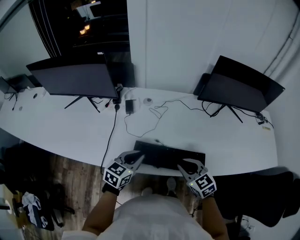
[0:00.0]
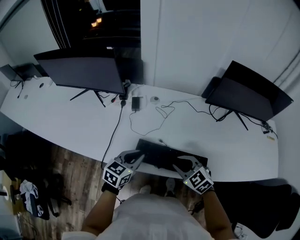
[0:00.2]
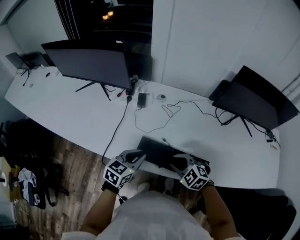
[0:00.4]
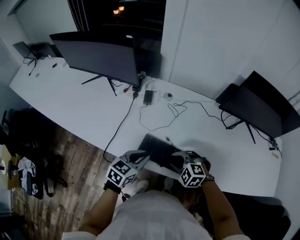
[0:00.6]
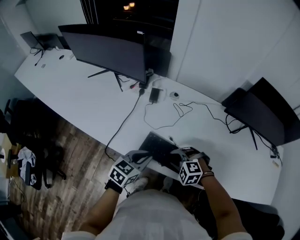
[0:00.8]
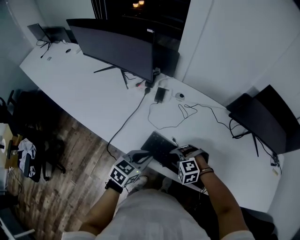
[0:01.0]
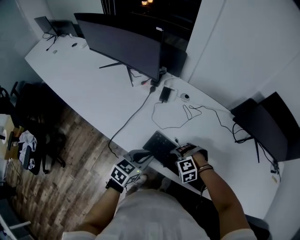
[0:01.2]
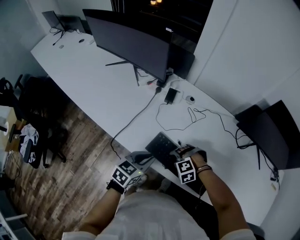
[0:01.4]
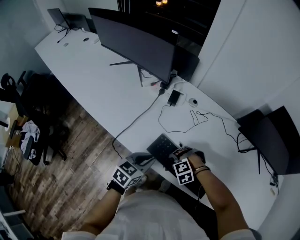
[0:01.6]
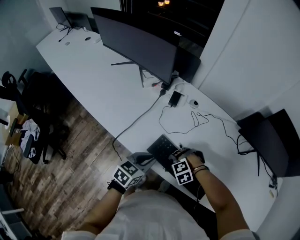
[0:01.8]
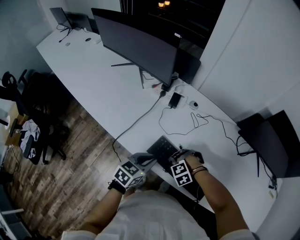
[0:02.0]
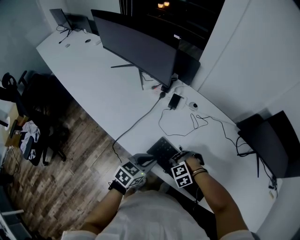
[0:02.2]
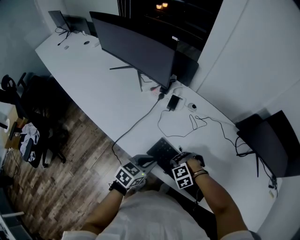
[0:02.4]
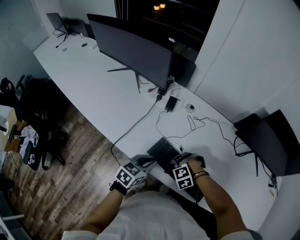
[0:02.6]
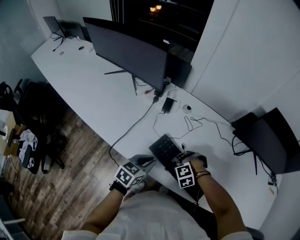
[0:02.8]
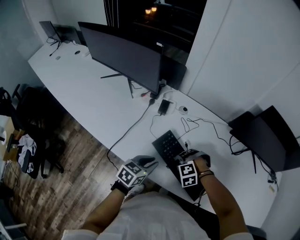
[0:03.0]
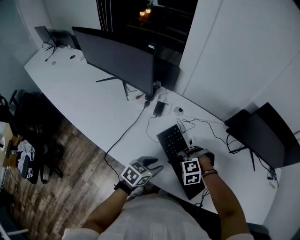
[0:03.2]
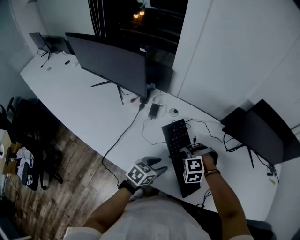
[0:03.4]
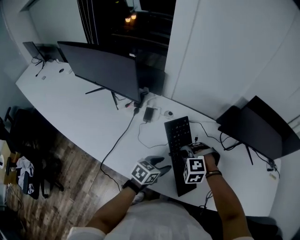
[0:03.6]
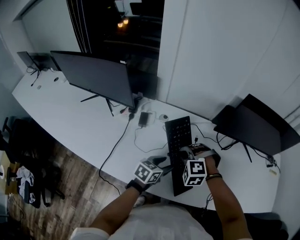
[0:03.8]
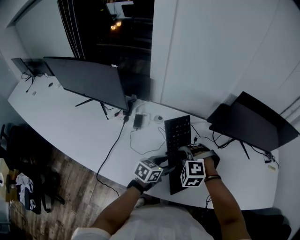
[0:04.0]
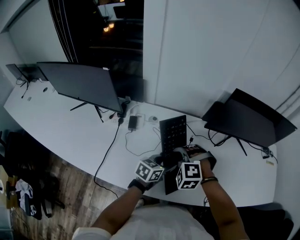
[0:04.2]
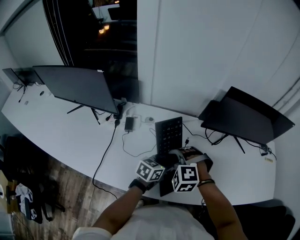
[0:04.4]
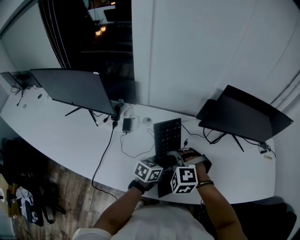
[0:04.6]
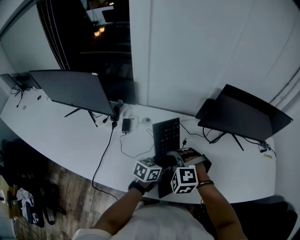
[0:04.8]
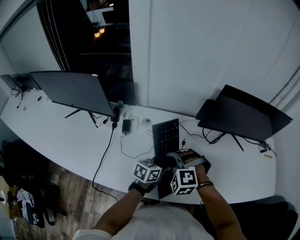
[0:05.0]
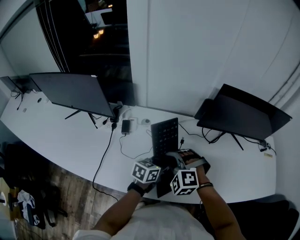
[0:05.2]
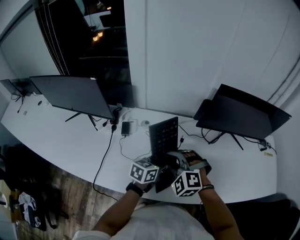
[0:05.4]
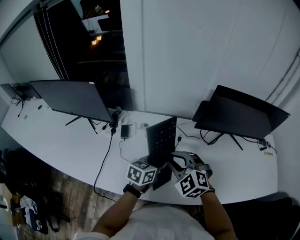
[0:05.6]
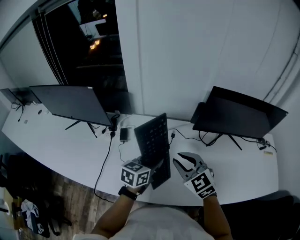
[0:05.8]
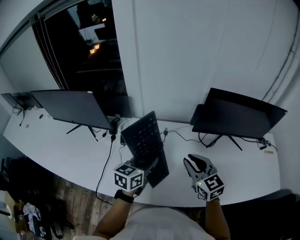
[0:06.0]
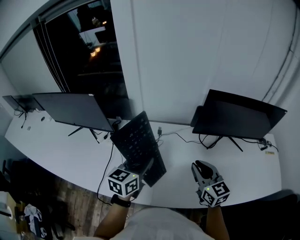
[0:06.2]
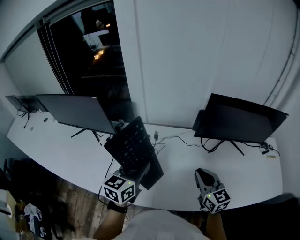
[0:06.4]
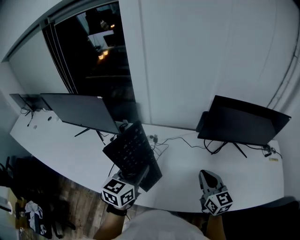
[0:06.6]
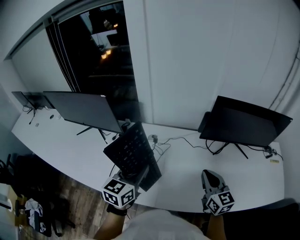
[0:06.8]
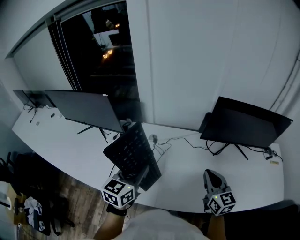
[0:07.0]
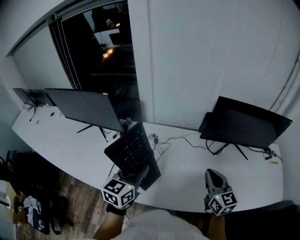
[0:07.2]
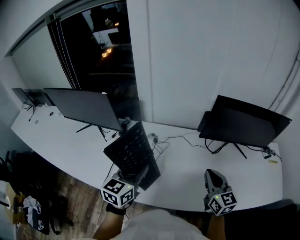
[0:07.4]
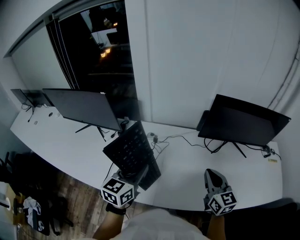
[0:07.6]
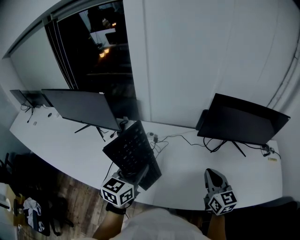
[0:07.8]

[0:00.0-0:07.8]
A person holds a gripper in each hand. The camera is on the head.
0:00.0 to 0:01.6: The left gripper shifts by roughly 5 cm, and swivels some 20 degrees. Meanwhile the right gripper moves downward, approximately 15 cm, rotates around the line of its fingers by about 90 degrees, counterclockwise from behind, and opens.
0:01.6 to 0:03.2: The right gripper moves approximately 10 cm, and closes up. The left gripper changes place by roughly 10 cm, and opens.
0:03.2 to 0:04.6: The left gripper is displaced to the right and forward by roughly 15 cm; the right gripper goes approximately 15 cm upward, and swivels some 30 degrees.
0:04.6 to 0:06.2: The right gripper moves to the right and upward, approximately 15 cm, and rolls clockwise, seen from behind, by approximately 70 degrees. Meanwhile the left gripper travels upward and to the left by roughly 20 cm, and turns by about 20 degrees.
0:06.2 to 0:07.8: The left gripper moves approximately 5 cm.

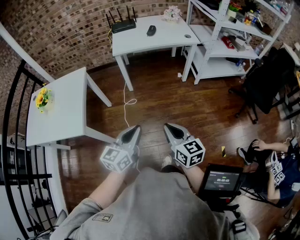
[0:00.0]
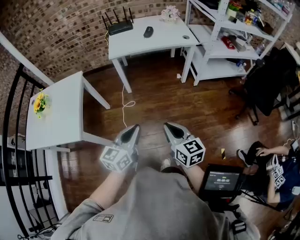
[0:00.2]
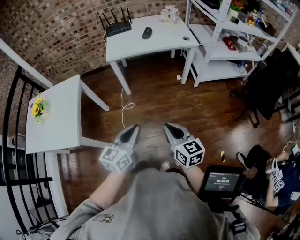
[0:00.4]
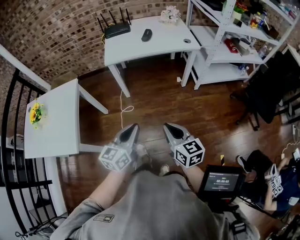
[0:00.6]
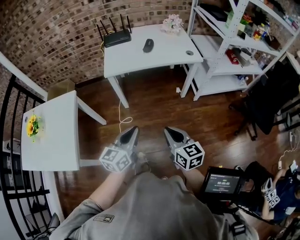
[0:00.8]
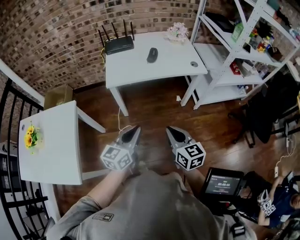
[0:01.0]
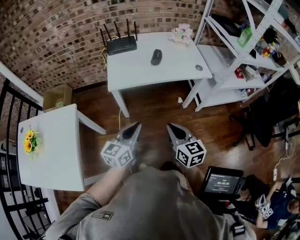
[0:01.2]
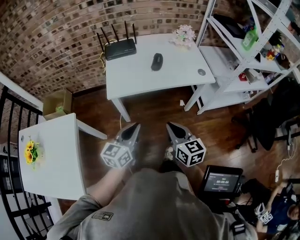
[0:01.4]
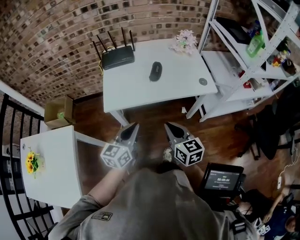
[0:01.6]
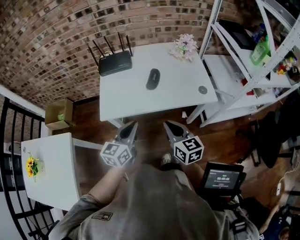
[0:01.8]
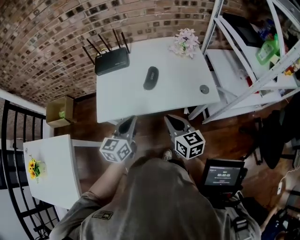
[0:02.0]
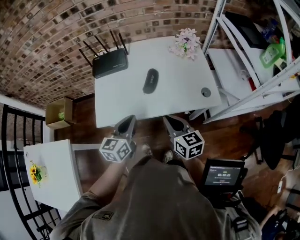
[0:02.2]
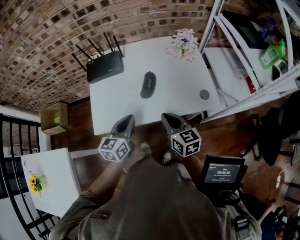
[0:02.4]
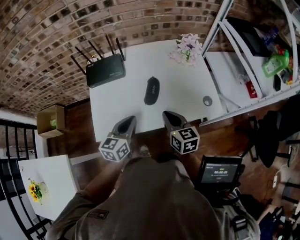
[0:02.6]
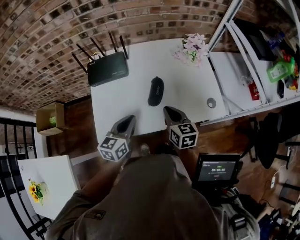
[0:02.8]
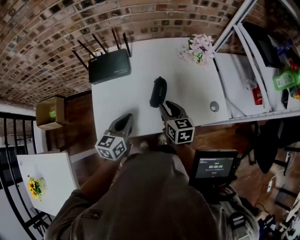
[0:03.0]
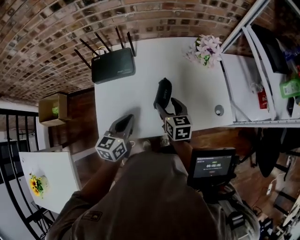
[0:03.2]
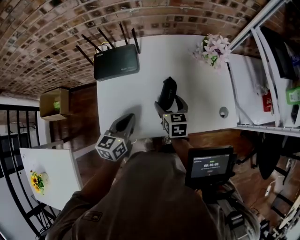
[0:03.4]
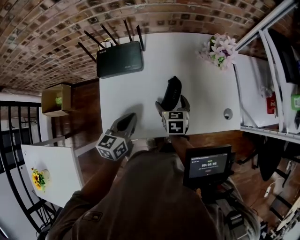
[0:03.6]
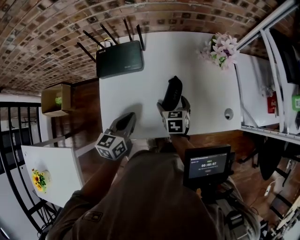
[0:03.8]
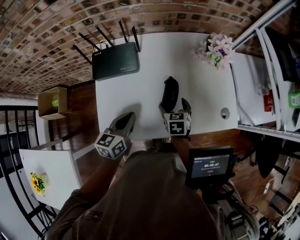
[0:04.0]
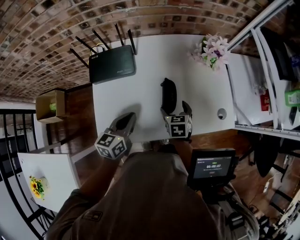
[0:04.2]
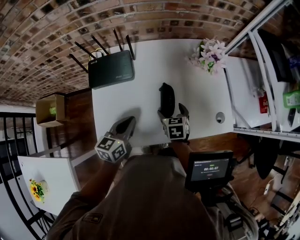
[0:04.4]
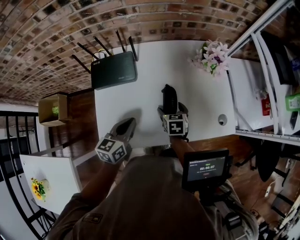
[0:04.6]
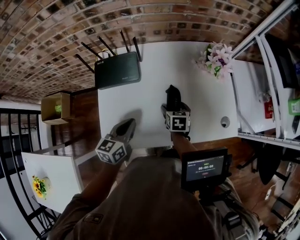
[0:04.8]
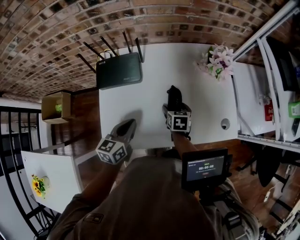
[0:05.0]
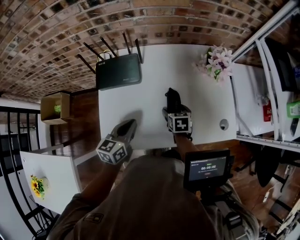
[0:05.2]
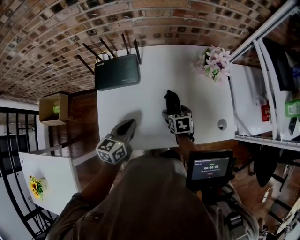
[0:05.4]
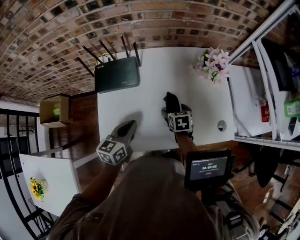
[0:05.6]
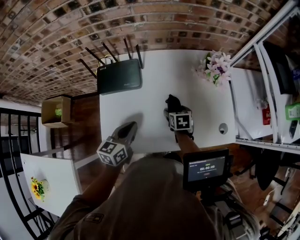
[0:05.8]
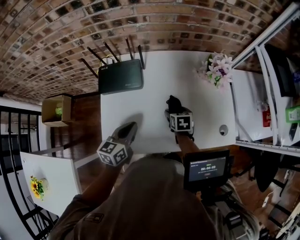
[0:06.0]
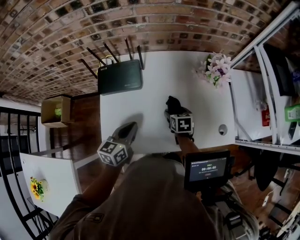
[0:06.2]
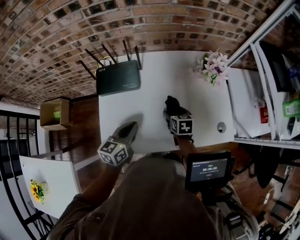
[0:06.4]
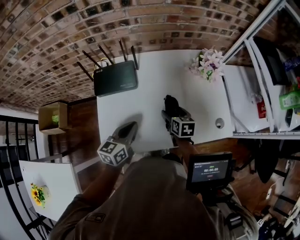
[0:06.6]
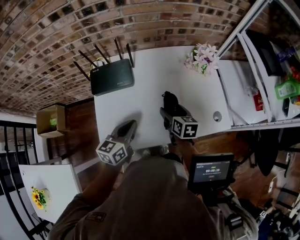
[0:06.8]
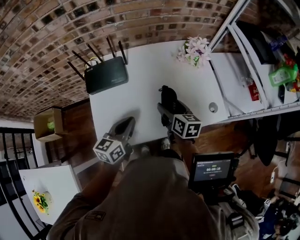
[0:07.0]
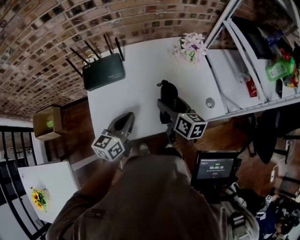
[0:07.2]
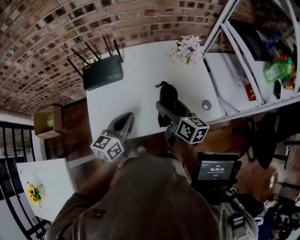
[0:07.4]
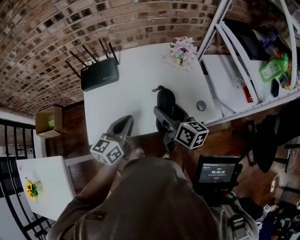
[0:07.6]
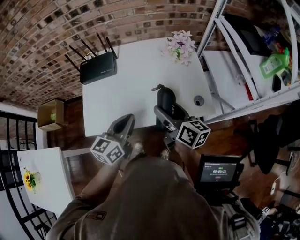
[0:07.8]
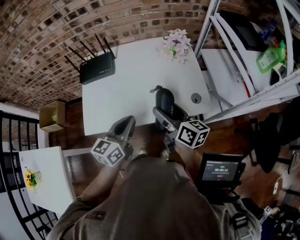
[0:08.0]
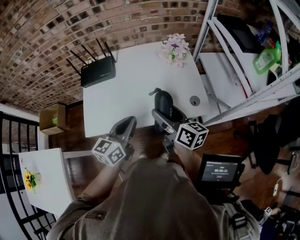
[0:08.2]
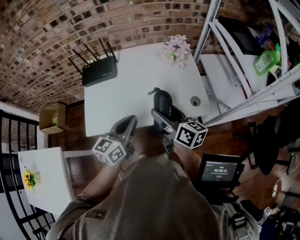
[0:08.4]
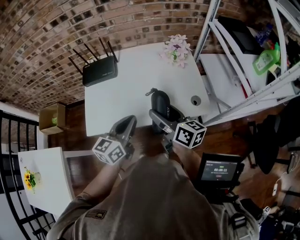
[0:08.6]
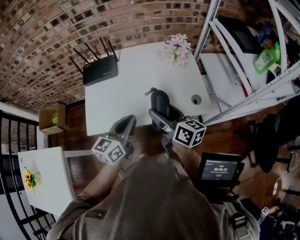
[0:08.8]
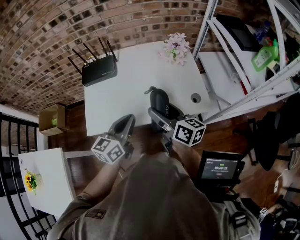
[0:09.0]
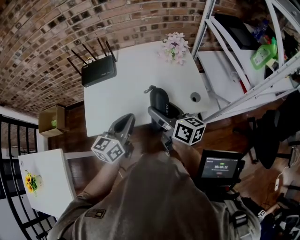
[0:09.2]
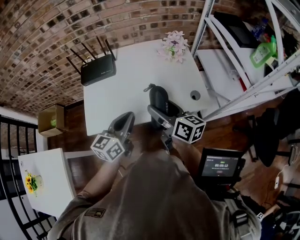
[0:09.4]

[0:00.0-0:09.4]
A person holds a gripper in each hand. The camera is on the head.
0:00.0 to 0:01.6: Both grippers are carried forward, about 50 cm.
0:01.6 to 0:03.2: Both grippers move forward, roughly 30 cm. The right gripper opens up.
0:03.2 to 0:04.8: The right gripper is displaced downward and forward by some 10 cm.
0:04.8 to 0:06.2: The grippers move only a little.
0:06.2 to 0:07.8: The left gripper heads to the right, backward and upward, covering approximately 20 cm; the right gripper shifts roughly 25 cm upward and backward, and points its fingers roughly 50 degrees further upward.
0:07.8 to 0:09.4: The grippers stay close to where they were, moving slightly.

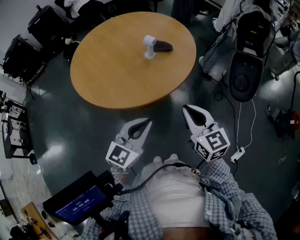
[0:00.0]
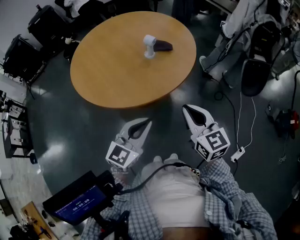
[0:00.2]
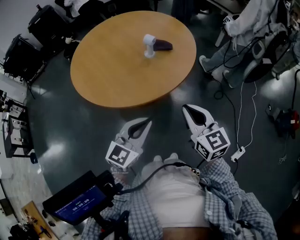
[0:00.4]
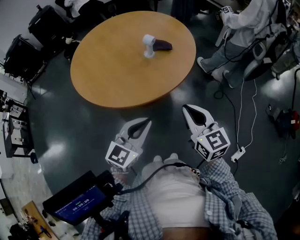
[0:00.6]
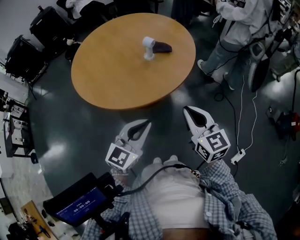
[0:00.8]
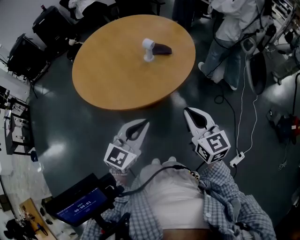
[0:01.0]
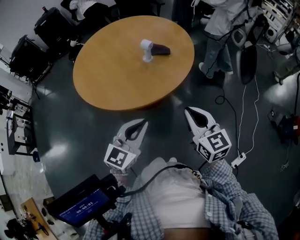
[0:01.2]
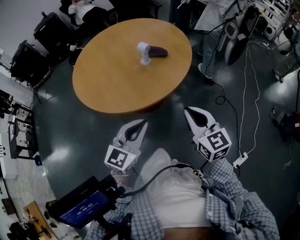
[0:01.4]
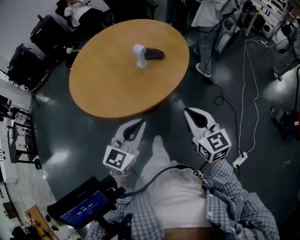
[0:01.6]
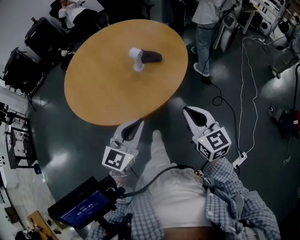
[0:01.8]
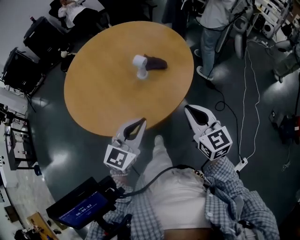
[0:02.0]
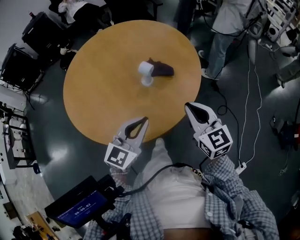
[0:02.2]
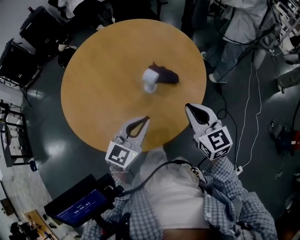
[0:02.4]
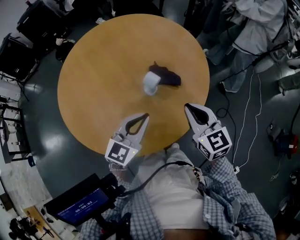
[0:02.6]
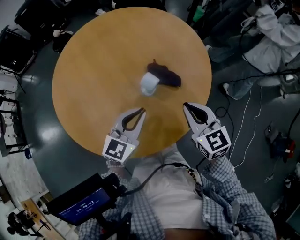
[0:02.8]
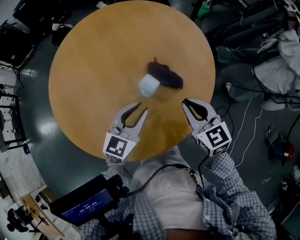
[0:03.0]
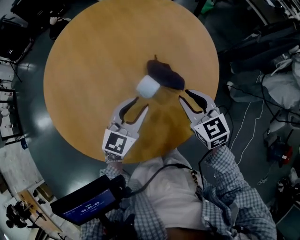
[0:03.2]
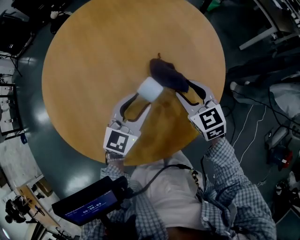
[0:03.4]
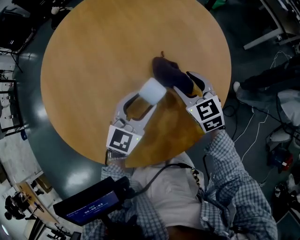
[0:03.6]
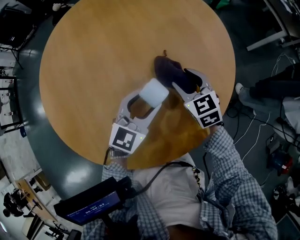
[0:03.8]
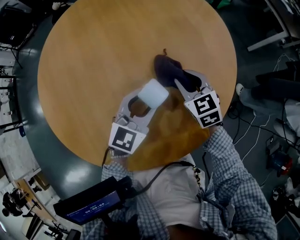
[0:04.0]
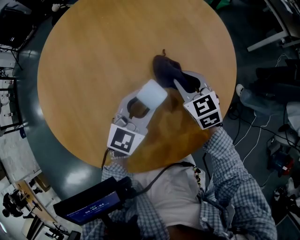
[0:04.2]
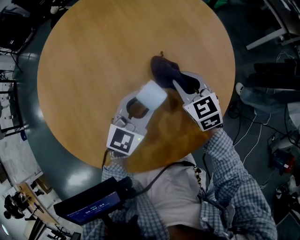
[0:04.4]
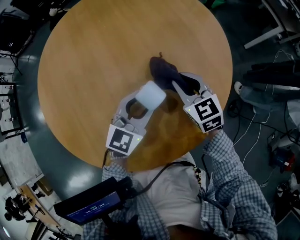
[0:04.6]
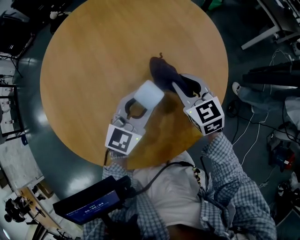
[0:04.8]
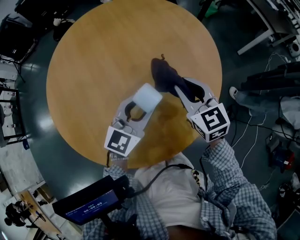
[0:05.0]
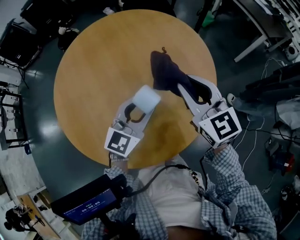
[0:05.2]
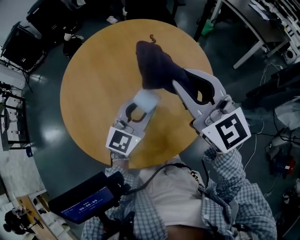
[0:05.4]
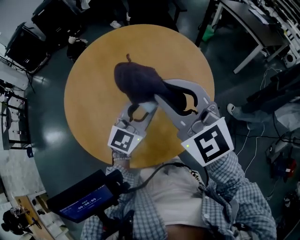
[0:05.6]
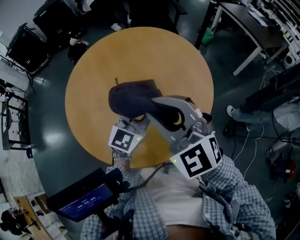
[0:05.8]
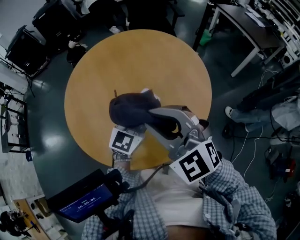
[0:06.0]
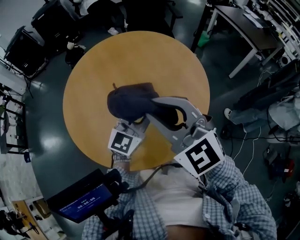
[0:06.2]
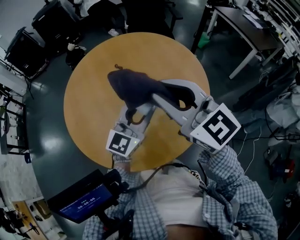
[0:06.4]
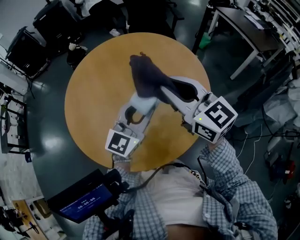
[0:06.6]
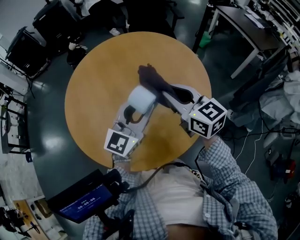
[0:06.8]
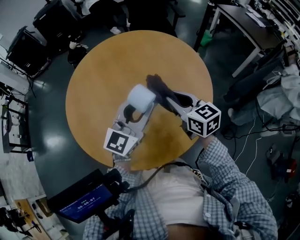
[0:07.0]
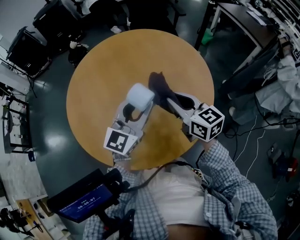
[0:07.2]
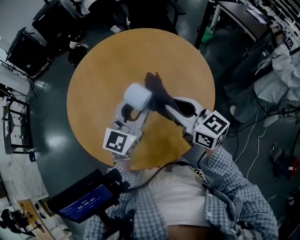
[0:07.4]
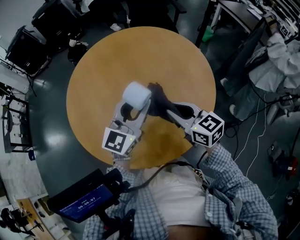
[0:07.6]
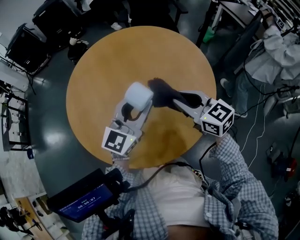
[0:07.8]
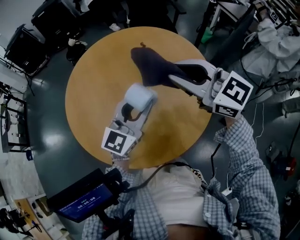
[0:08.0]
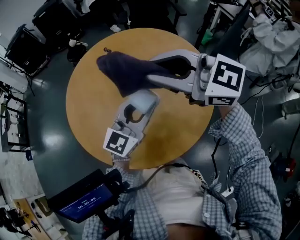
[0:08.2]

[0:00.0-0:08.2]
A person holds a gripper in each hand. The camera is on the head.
0:00.0 to 0:01.6: The right gripper is displaced to the right by approximately 5 cm.
0:01.6 to 0:03.2: The two grippers go some 30 cm forward. The right gripper rotates roughly 20 degrees, and opens; the left gripper opens.
0:03.2 to 0:05.0: The left gripper shifts by roughly 5 cm; the right gripper shifts about 5 cm forward, reaches roughly 10 cm downward, then returns, and opens, then closes again.
0:05.0 to 0:06.6: The left gripper is displaced upward by approximately 15 cm. The right gripper heads upward, covering about 20 cm, and changes its angle by some 20 degrees.
0:06.6 to 0:08.2: The right gripper swings up and down, approximately 20 cm each way, with 3 reversals, and turns by roughly 30 degrees.
